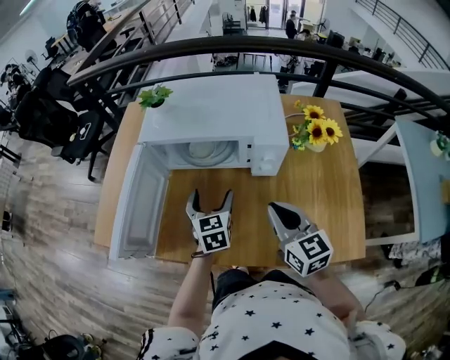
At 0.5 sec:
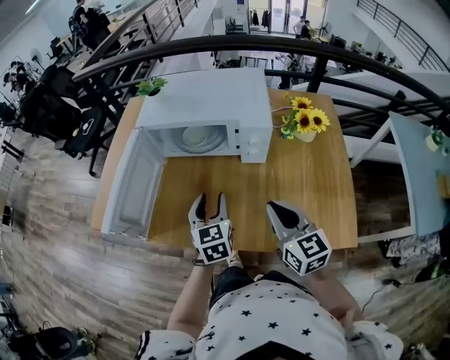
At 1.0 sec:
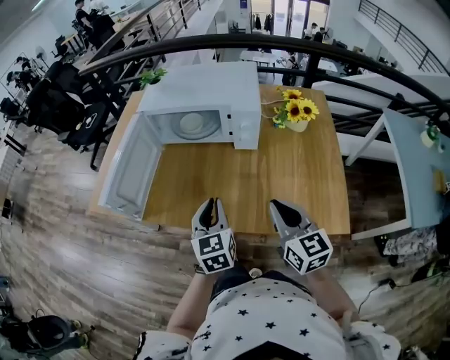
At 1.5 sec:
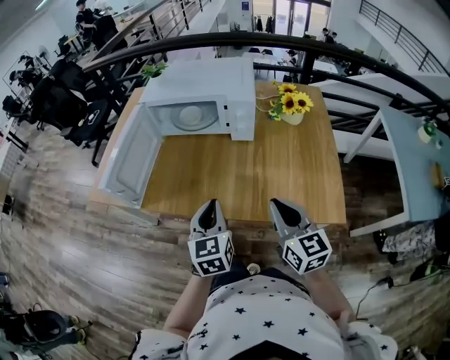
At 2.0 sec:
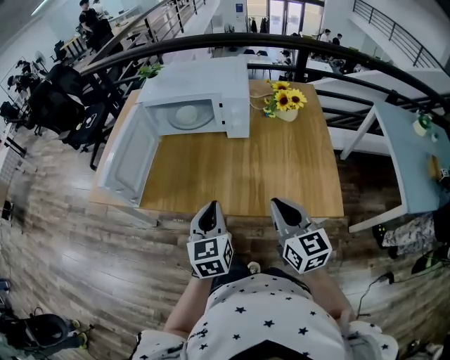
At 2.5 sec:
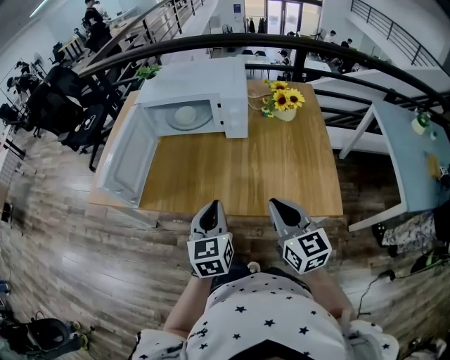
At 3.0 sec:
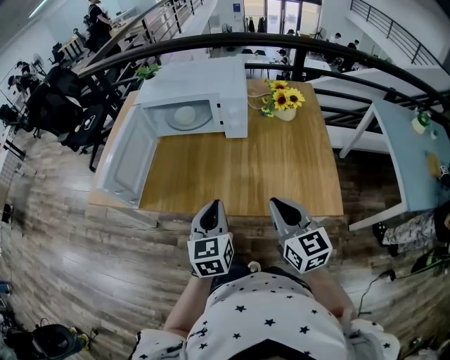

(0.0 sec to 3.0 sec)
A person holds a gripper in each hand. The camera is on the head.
0.0 sec - 1.5 sec: The grippers both shift backward by about 25 cm. The left gripper closes its fingers.
1.5 sec - 3.0 sec: There are only small adjustments of the grippers.

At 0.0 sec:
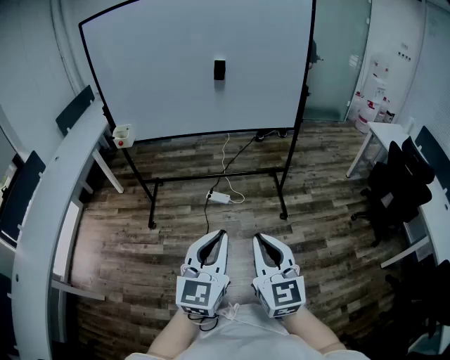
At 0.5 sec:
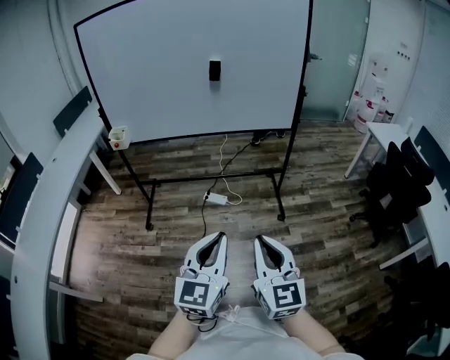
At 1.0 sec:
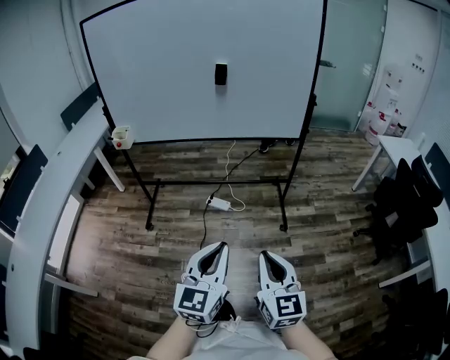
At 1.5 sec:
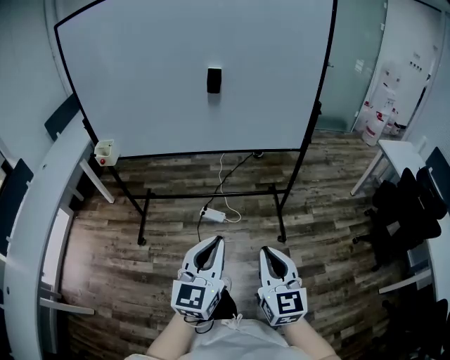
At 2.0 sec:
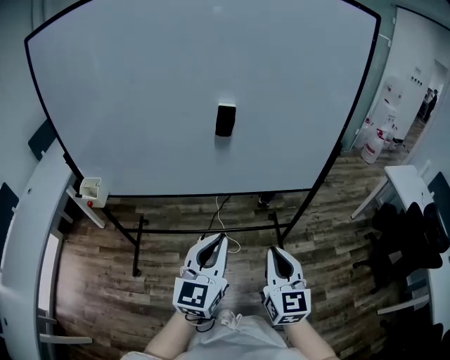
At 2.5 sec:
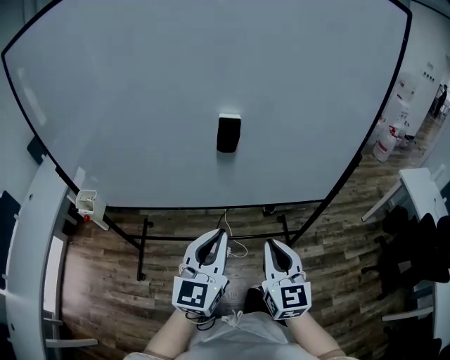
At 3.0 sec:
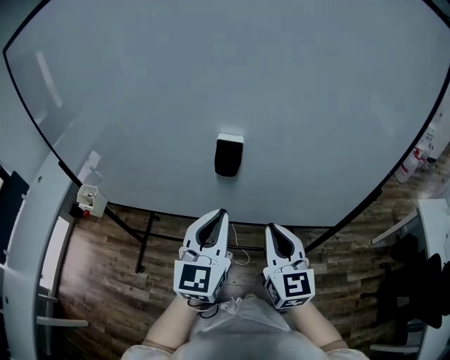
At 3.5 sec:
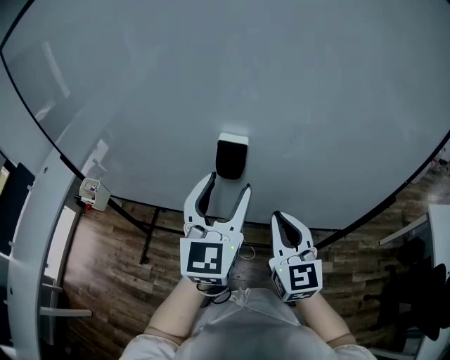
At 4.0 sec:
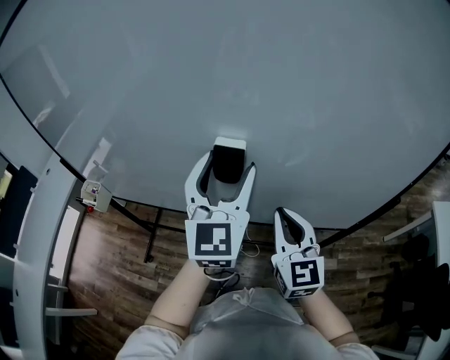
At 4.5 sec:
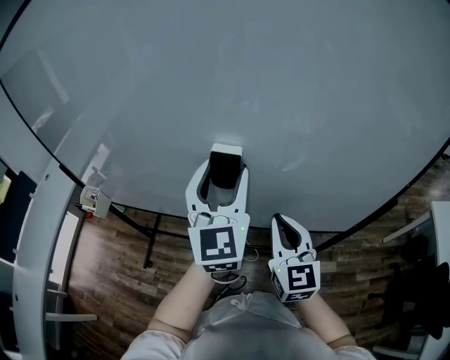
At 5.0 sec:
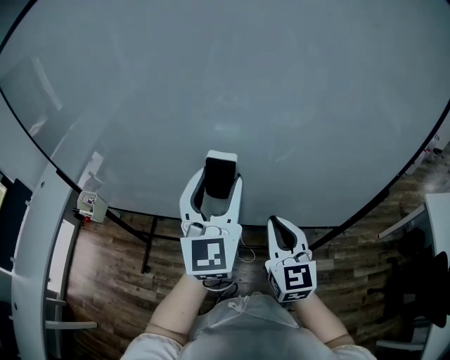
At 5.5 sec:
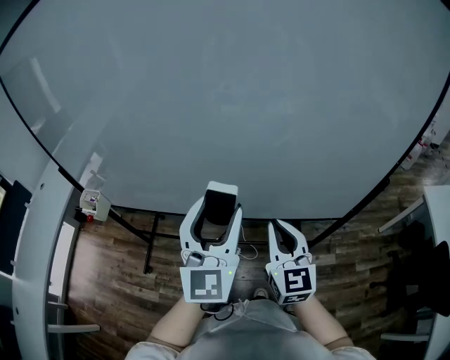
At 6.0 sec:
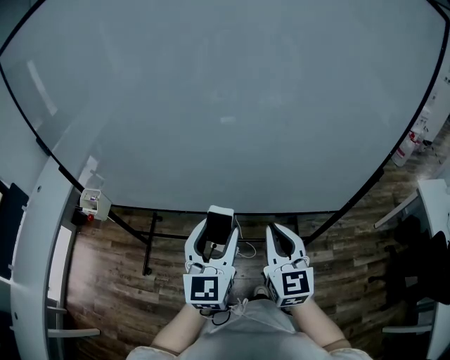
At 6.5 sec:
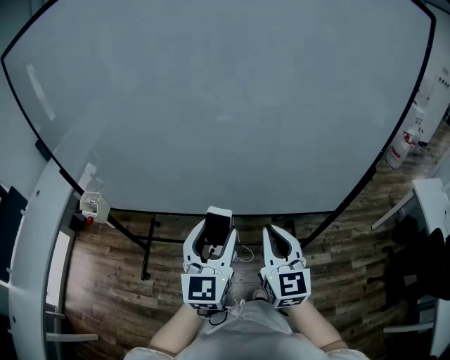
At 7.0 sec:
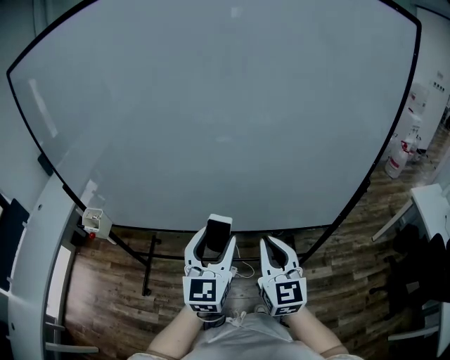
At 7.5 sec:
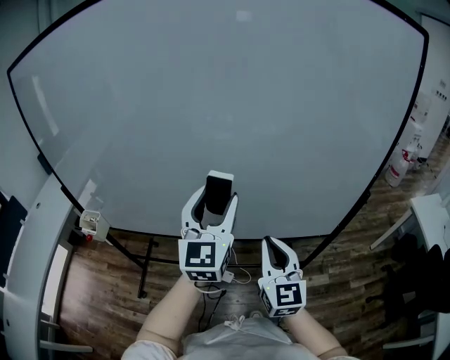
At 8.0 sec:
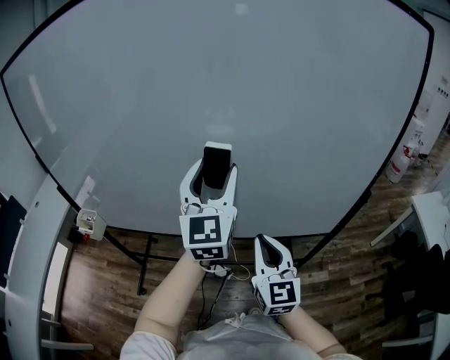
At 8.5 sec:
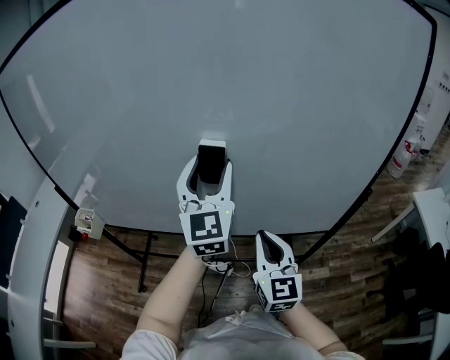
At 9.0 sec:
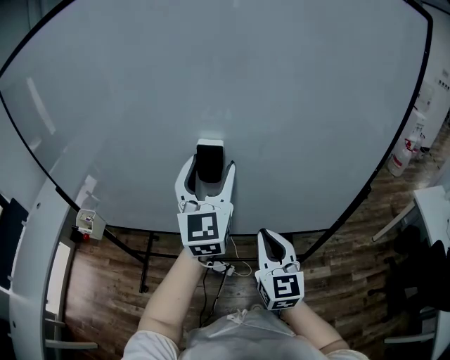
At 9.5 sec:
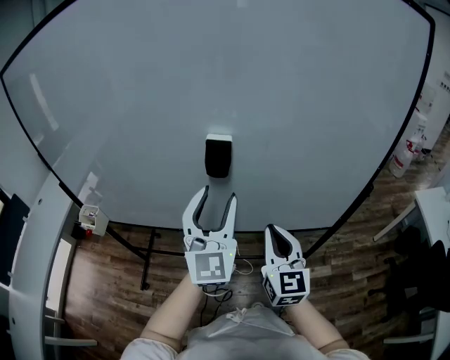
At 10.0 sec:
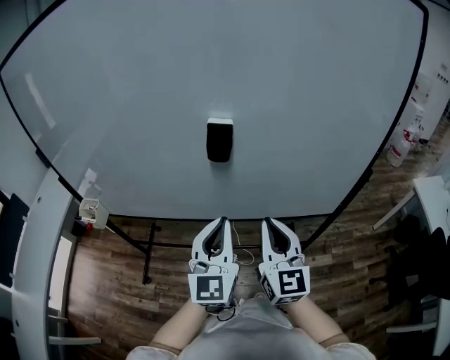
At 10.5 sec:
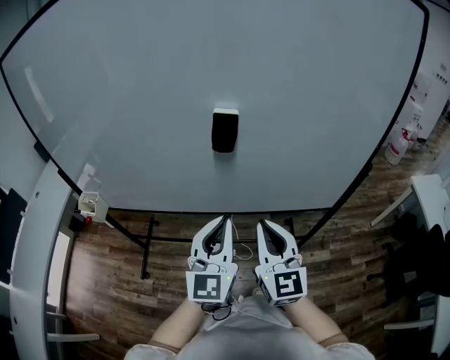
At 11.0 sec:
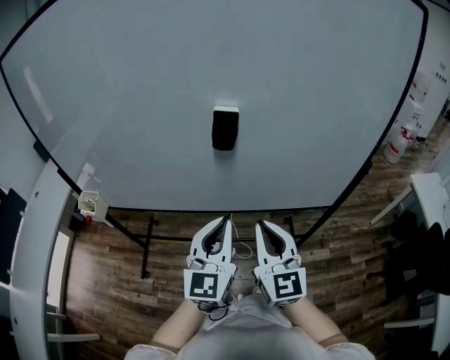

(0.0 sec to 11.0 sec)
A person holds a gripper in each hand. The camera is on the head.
0.0 sec - 2.0 sec: The pair of grippers is taken forward, some 40 cm.
2.0 sec - 3.5 sec: The grippers both shift forward by approximately 30 cm. The left gripper rotates some 20 degrees, and opens its fingers.
3.5 sec - 5.5 sec: The left gripper heads backward, covering approximately 5 cm.
5.5 sec - 7.5 sec: The left gripper travels downward and back again, about 10 cm each way.
7.5 sec - 9.0 sec: The left gripper is displaced forward by approximately 5 cm.
9.0 sec - 11.0 sec: The right gripper travels backward by some 5 cm; the left gripper moves backward and downward, approximately 20 cm, and closes up.

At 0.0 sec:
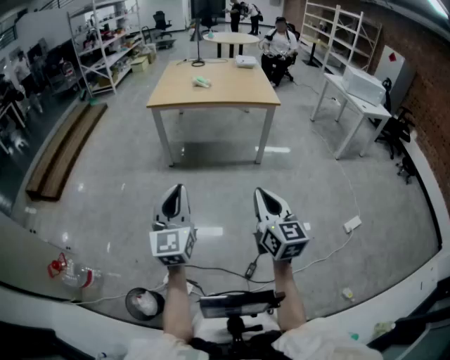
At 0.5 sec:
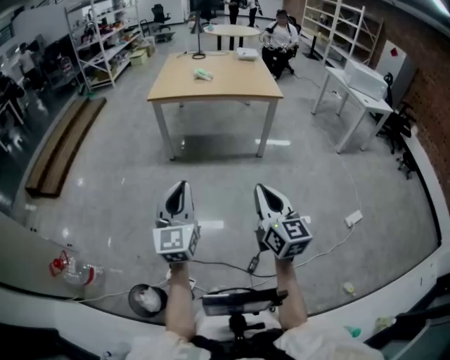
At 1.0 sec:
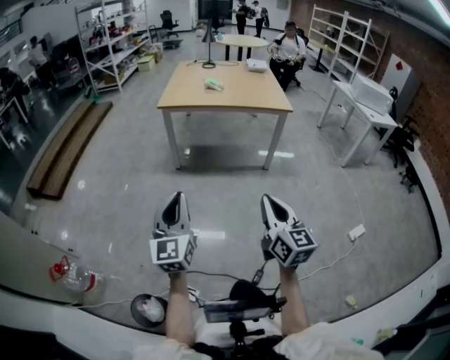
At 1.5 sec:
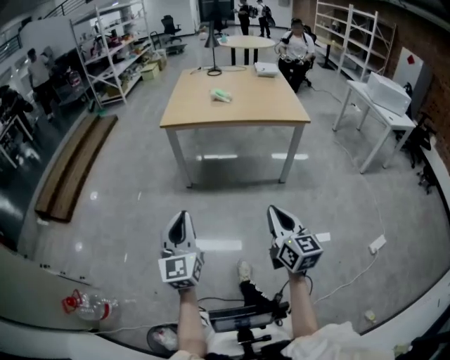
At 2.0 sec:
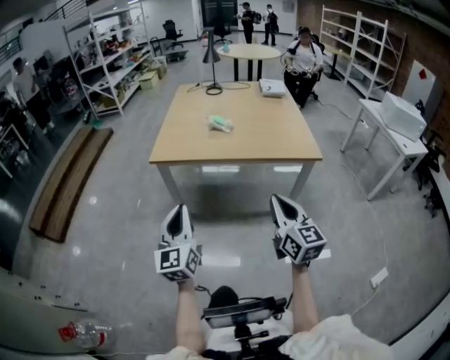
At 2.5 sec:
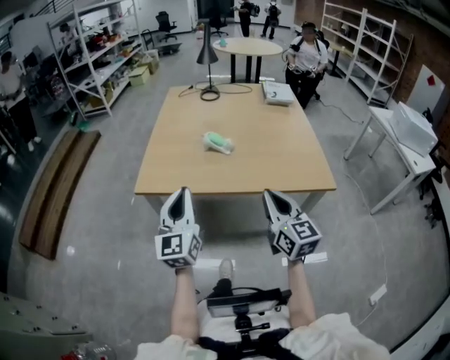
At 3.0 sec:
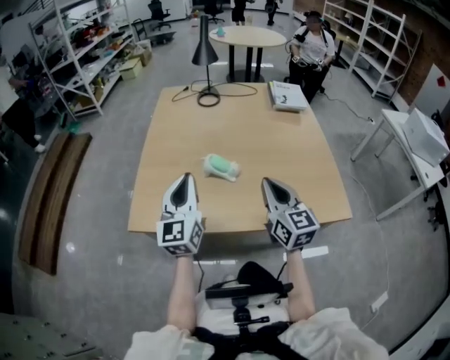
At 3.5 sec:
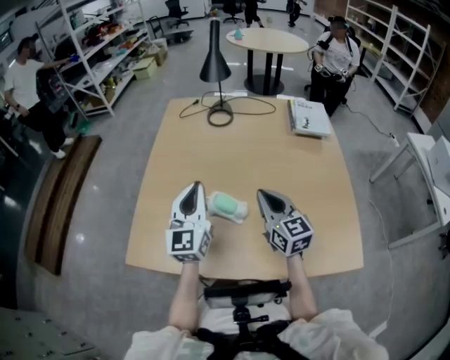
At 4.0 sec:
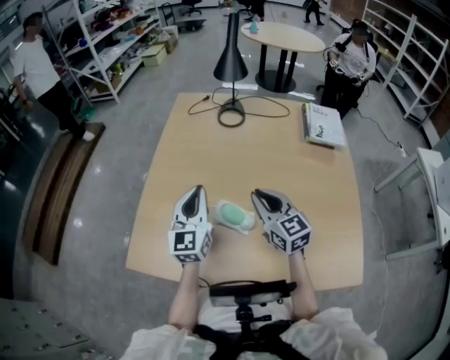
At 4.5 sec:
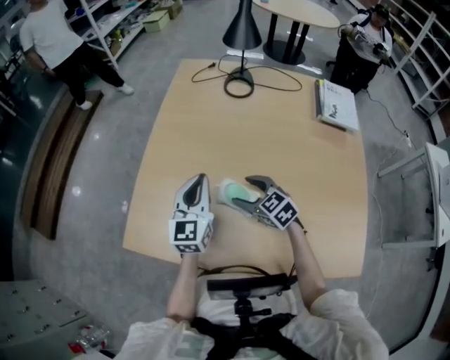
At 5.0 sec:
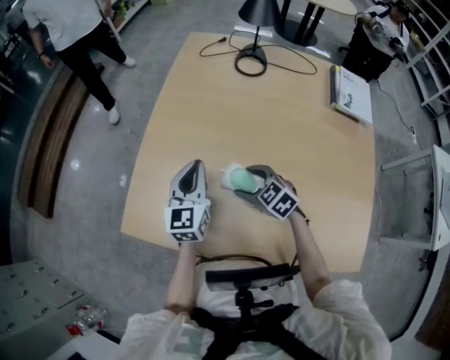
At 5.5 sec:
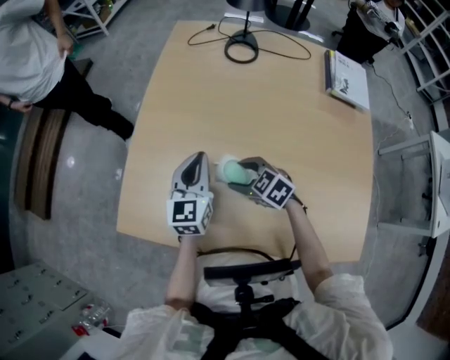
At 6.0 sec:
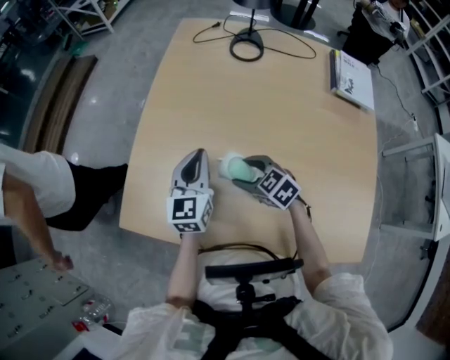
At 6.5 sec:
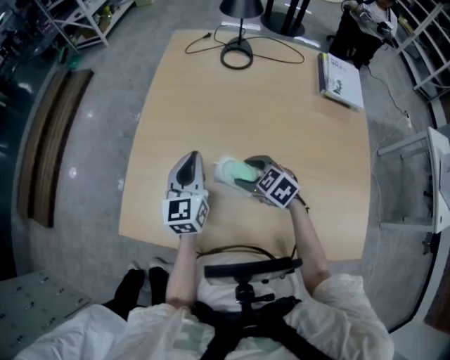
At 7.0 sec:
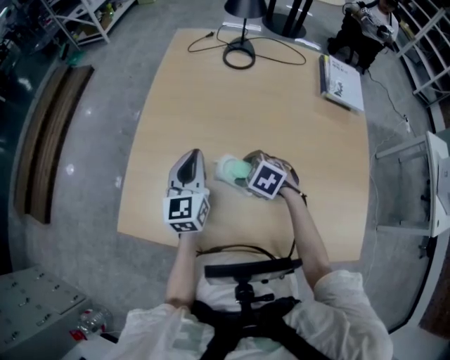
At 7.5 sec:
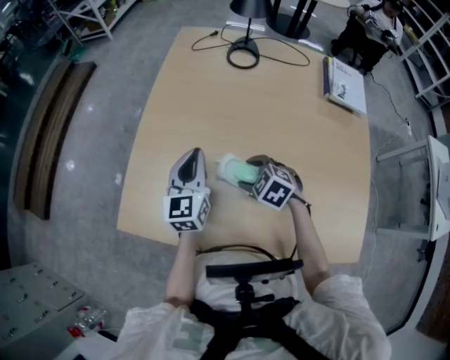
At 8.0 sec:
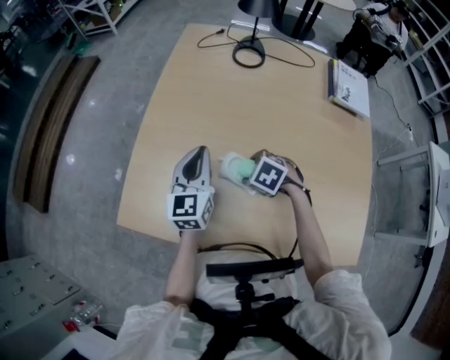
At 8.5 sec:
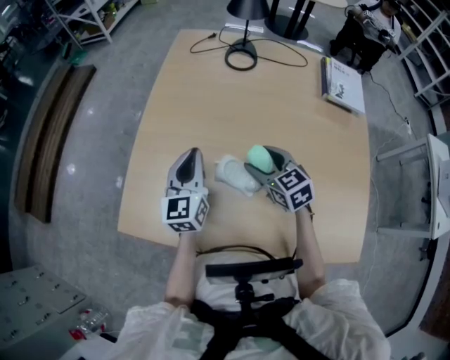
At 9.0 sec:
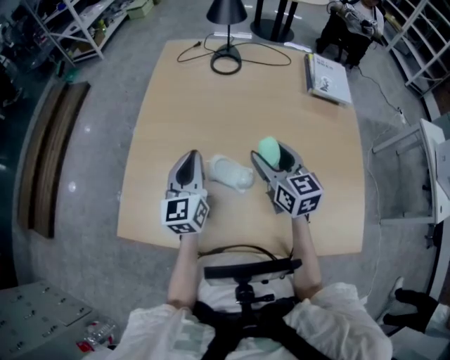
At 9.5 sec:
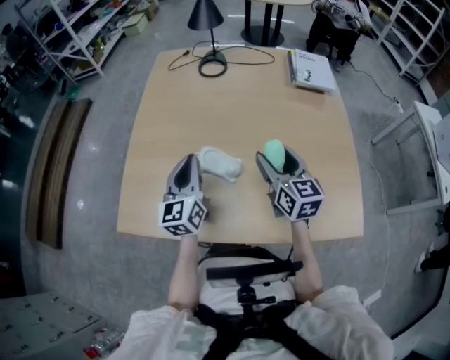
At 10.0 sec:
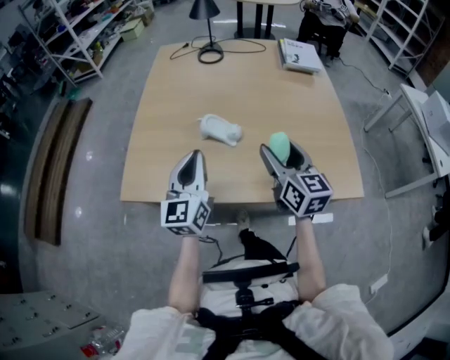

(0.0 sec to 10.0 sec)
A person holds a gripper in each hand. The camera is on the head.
0.0 sec - 2.0 sec: The two grippers travel together, forward, approximately 50 cm.
2.0 sec - 4.0 sec: The two grippers travel together, forward, about 80 cm. The right gripper turns by some 20 degrees.
4.0 sec - 6.0 sec: The right gripper shifts some 20 cm downward and to the left, points its fingers roughly 30 degrees further downward, and opens. The left gripper heads downward, covering some 10 cm.
6.0 sec - 8.0 sec: The right gripper rotates roughly 30 degrees.
8.0 sec - 10.0 sec: The right gripper shifts by approximately 30 cm, and points its fingers some 70 degrees further upward. Meanwhile the left gripper moves some 25 cm.

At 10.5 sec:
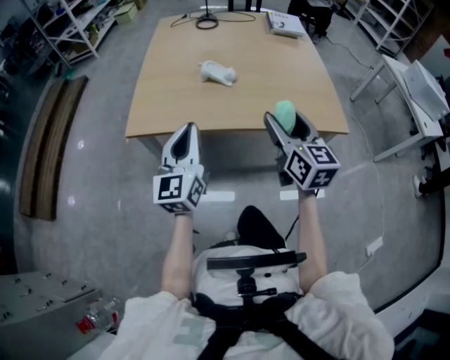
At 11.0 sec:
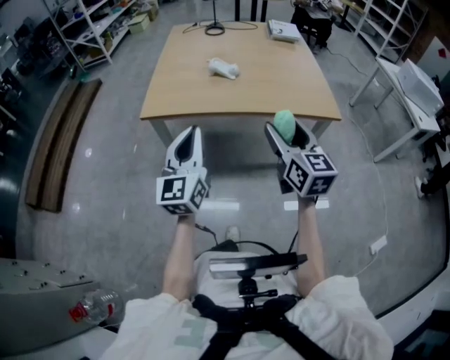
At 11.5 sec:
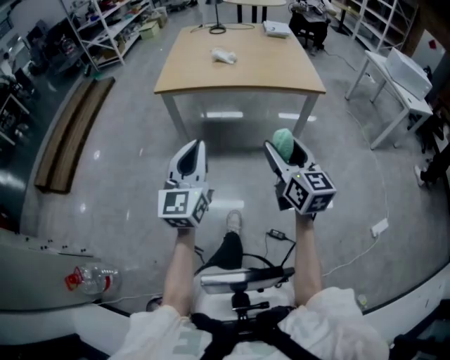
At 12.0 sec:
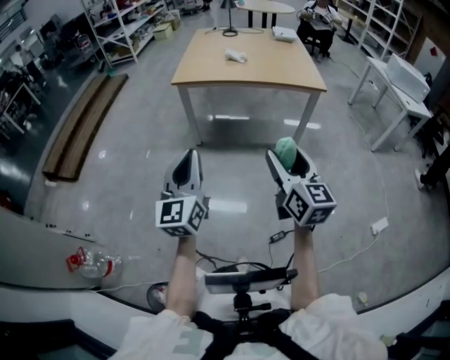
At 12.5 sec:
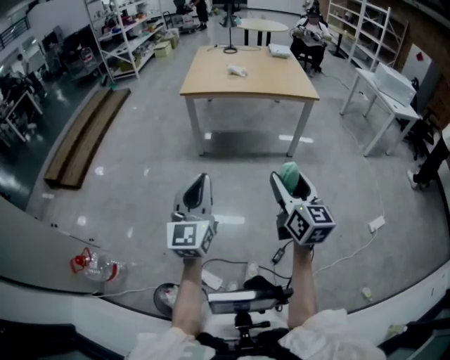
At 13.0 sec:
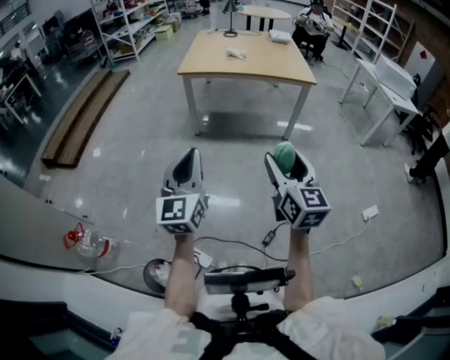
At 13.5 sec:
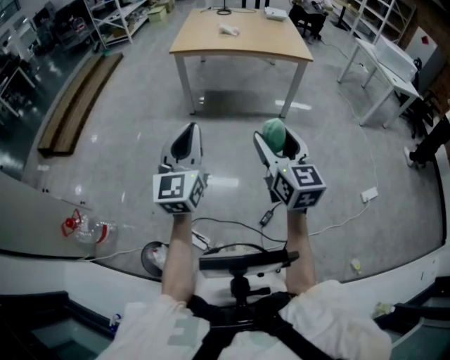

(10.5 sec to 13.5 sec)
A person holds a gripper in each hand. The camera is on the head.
10.5 sec - 12.0 sec: Both grippers are carried backward, roughly 60 cm.
12.0 sec - 13.5 sec: The two grippers go some 20 cm backward.
